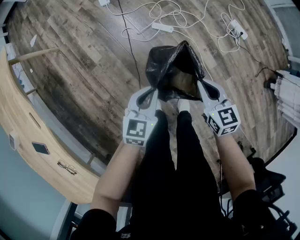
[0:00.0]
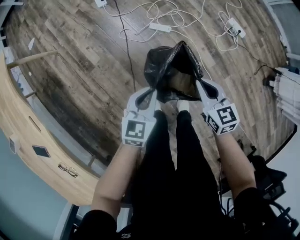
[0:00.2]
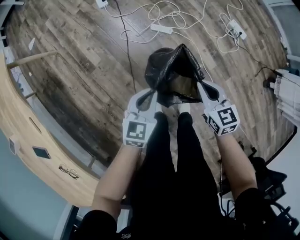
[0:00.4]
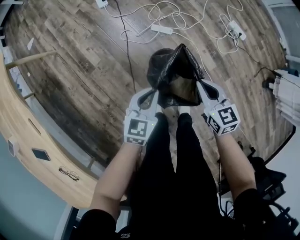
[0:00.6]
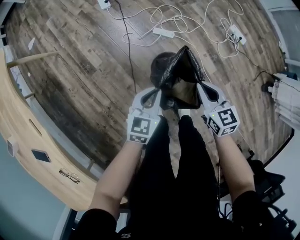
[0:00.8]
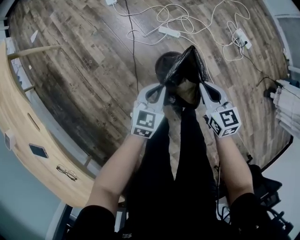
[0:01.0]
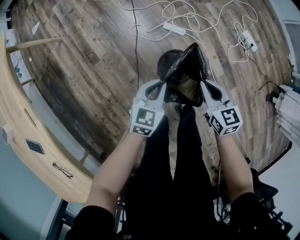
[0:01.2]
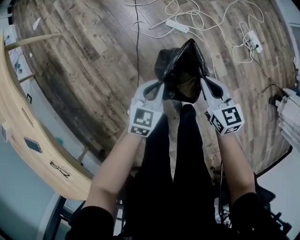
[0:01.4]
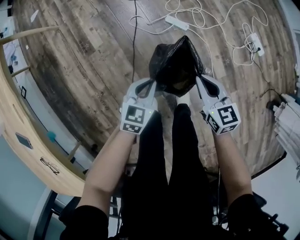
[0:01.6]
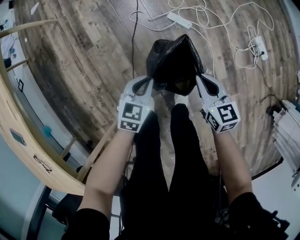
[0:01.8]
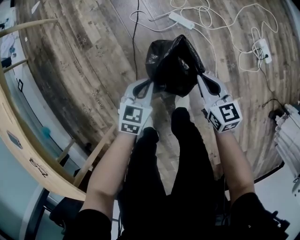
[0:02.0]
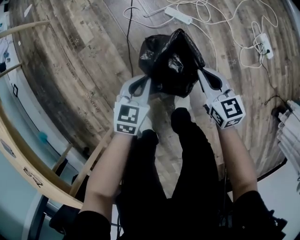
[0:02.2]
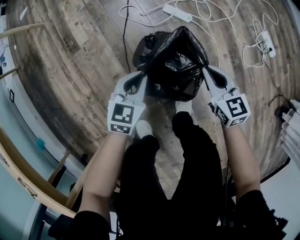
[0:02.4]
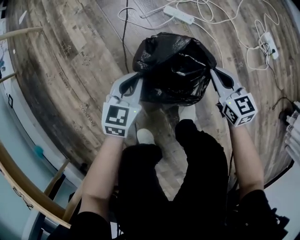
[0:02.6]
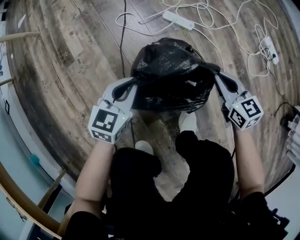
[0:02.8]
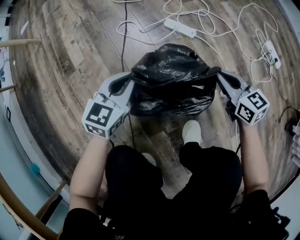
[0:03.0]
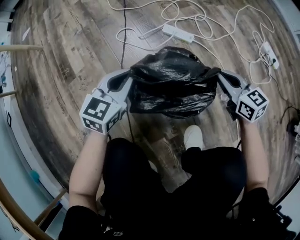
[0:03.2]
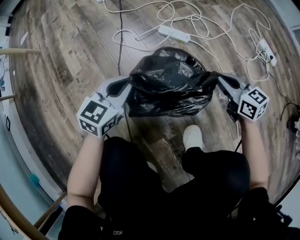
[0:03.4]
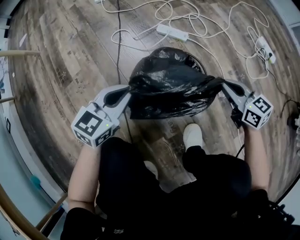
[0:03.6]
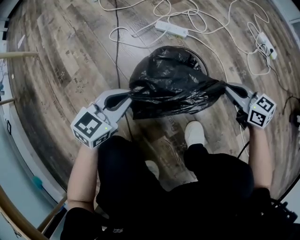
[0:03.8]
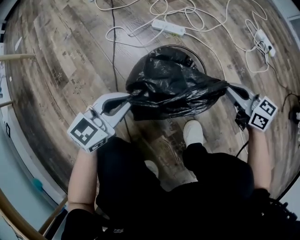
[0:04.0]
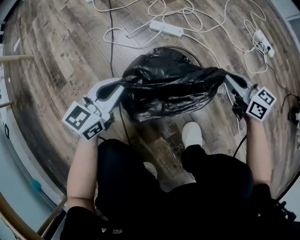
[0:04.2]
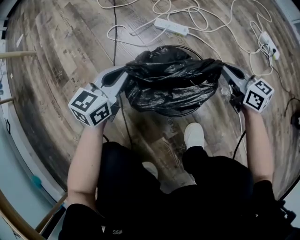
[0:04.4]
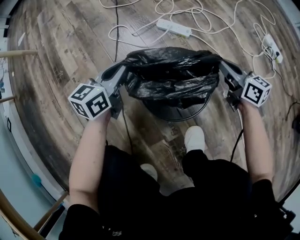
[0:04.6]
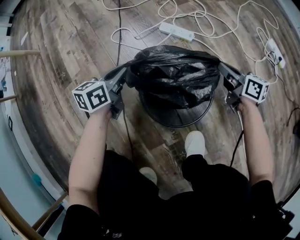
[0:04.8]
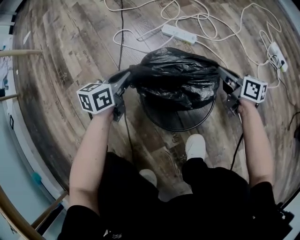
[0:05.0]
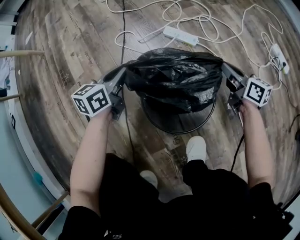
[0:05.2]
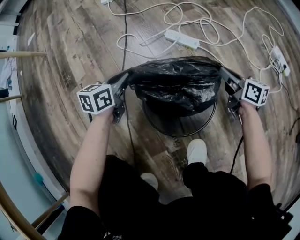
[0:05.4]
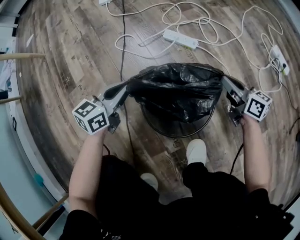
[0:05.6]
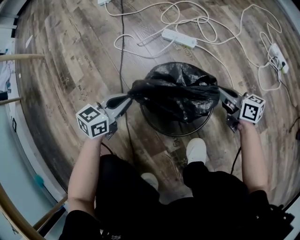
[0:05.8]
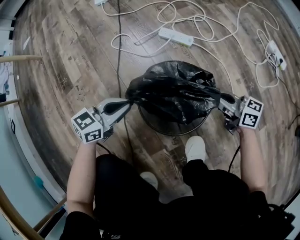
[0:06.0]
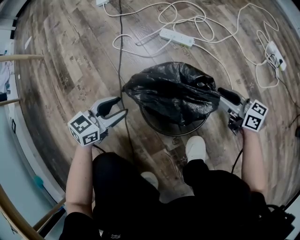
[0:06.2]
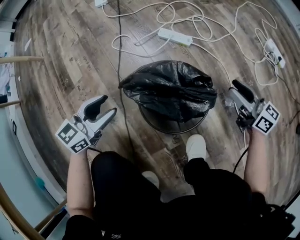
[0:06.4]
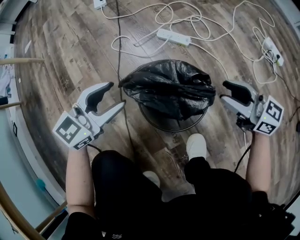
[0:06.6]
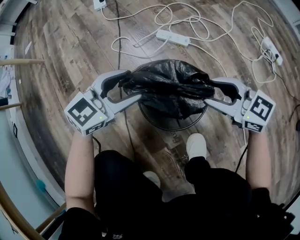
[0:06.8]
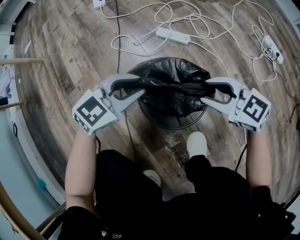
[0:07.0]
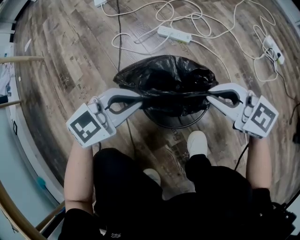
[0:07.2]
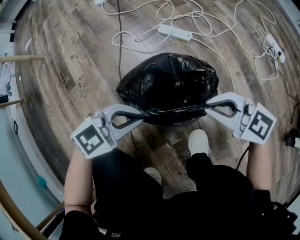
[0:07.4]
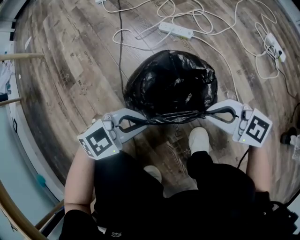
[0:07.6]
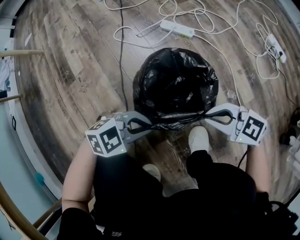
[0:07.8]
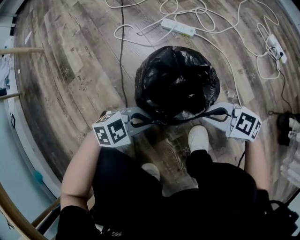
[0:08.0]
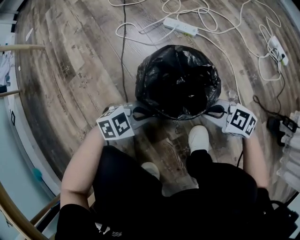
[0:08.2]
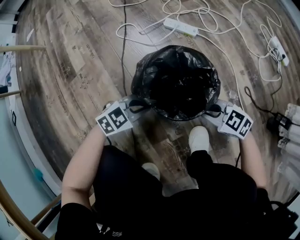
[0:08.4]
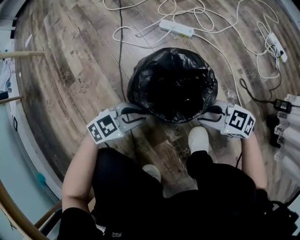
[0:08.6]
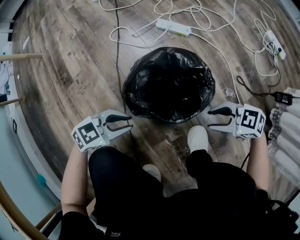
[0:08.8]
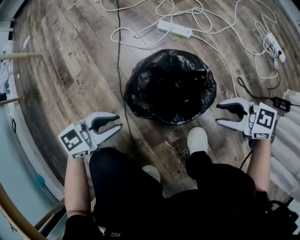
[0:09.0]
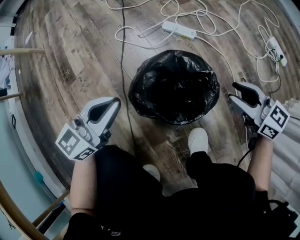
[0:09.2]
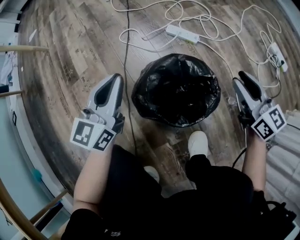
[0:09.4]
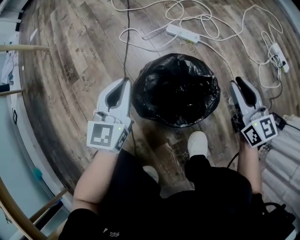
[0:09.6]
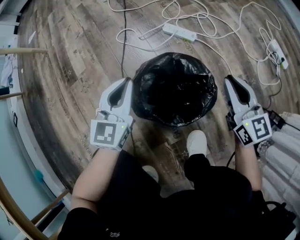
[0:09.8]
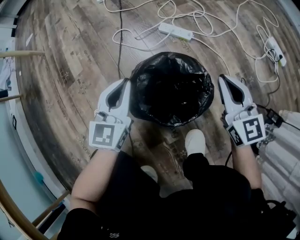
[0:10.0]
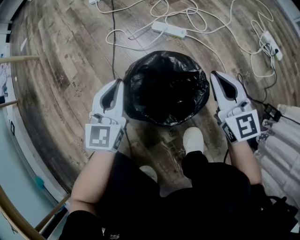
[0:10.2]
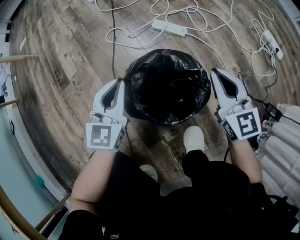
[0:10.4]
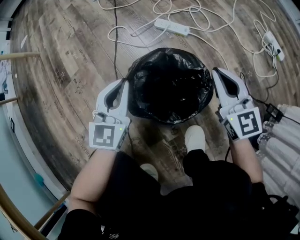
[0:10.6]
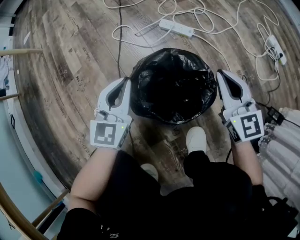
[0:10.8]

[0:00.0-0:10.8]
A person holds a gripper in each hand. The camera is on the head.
0.0 to 1.6 s: The right gripper travels downward and forward by roughly 15 cm; the left gripper heads downward, covering roughly 15 cm.
1.6 to 3.0 s: Both grippers travel together downward, some 25 cm.
3.0 to 4.6 s: Both grippers travel together downward, roughly 5 cm. The right gripper goes backward and returns, about 5 cm each way; the left gripper rotates approximately 20 degrees.
4.6 to 6.2 s: The grippers both shift backward by roughly 10 cm. The right gripper opens its fingers. The left gripper changes its angle by roughly 20 degrees, and opens up.
6.2 to 7.8 s: The right gripper ends up some 15 cm from where it was, turns by approximately 40 degrees, and closes. Meanwhile the left gripper travels upward and back again, about 10 cm each way, swivels approximately 50 degrees, and closes.
7.8 to 9.2 s: The left gripper changes place by approximately 20 cm, rotates roughly 60 degrees, and opens and closes again. The right gripper ends up roughly 15 cm from where it was, changes its angle by roughly 30 degrees, and opens its fingers.
9.2 to 10.8 s: The right gripper moves approximately 5 cm, changes its angle by roughly 30 degrees, and closes. Meanwhile the left gripper is displaced downward by approximately 5 cm, and turns by about 30 degrees.

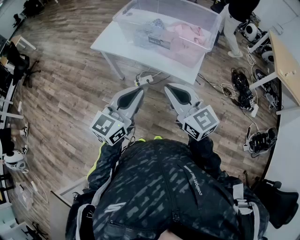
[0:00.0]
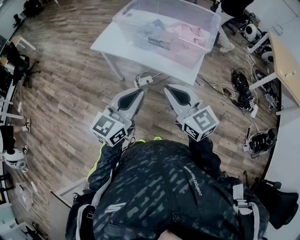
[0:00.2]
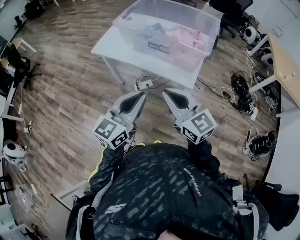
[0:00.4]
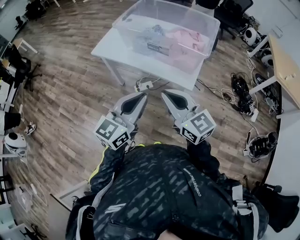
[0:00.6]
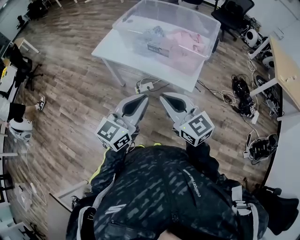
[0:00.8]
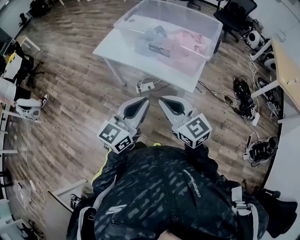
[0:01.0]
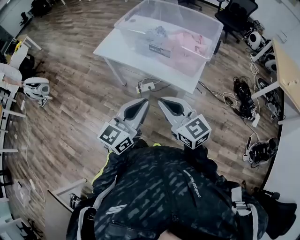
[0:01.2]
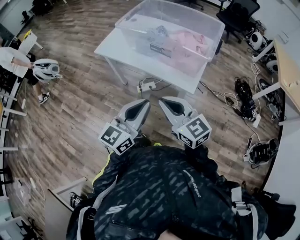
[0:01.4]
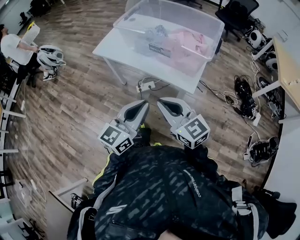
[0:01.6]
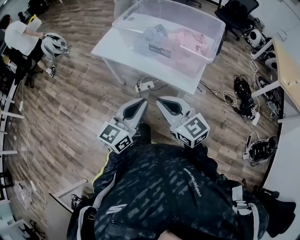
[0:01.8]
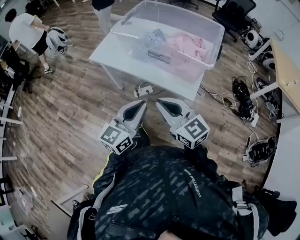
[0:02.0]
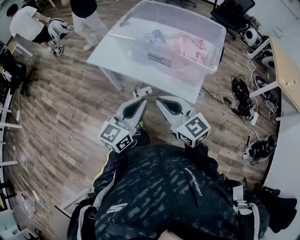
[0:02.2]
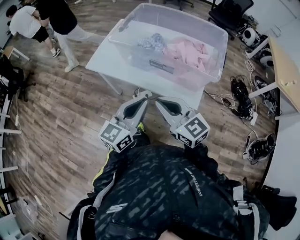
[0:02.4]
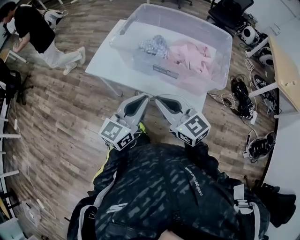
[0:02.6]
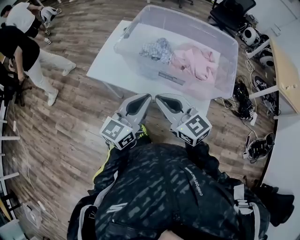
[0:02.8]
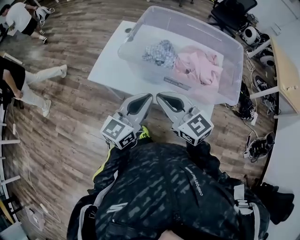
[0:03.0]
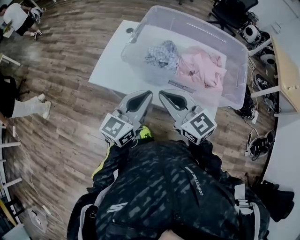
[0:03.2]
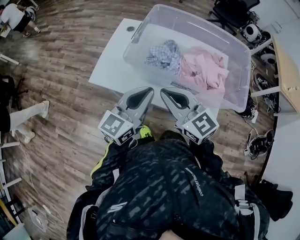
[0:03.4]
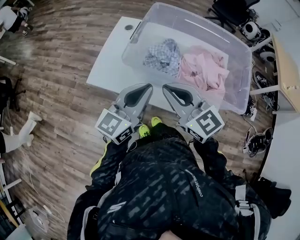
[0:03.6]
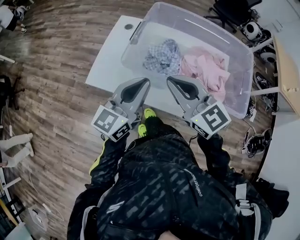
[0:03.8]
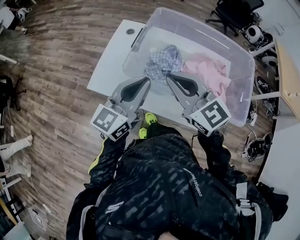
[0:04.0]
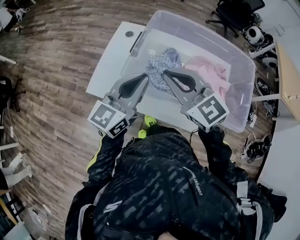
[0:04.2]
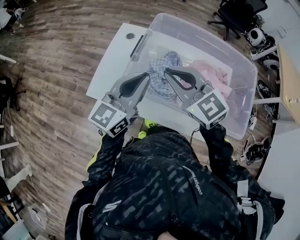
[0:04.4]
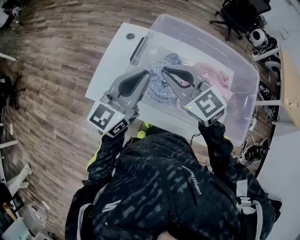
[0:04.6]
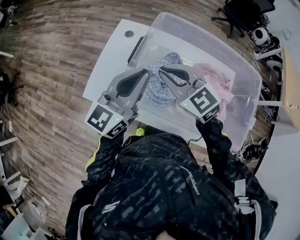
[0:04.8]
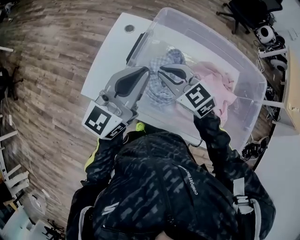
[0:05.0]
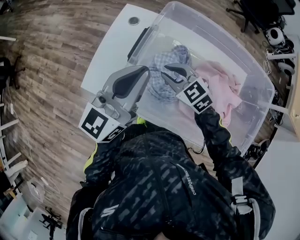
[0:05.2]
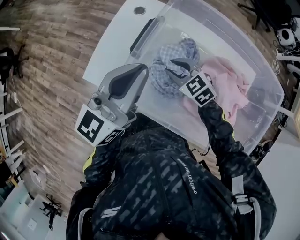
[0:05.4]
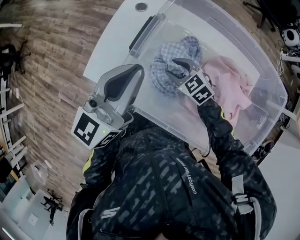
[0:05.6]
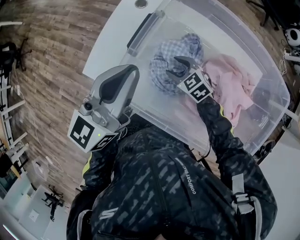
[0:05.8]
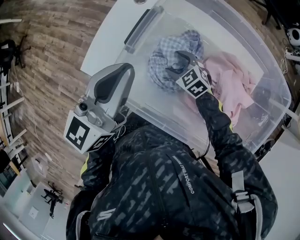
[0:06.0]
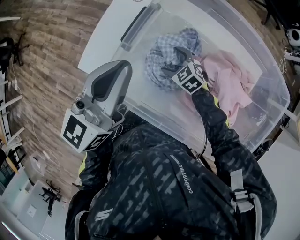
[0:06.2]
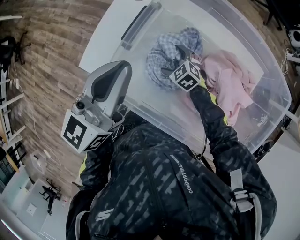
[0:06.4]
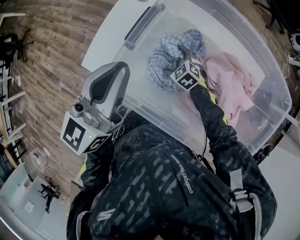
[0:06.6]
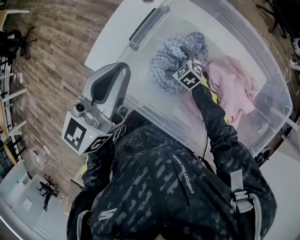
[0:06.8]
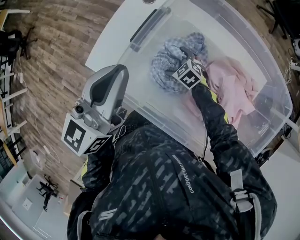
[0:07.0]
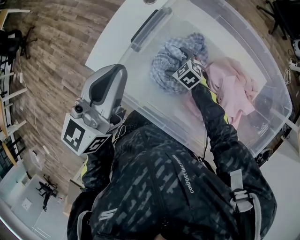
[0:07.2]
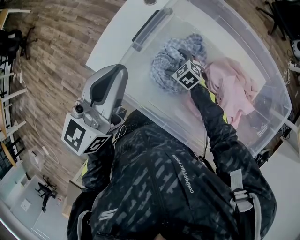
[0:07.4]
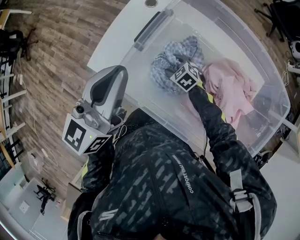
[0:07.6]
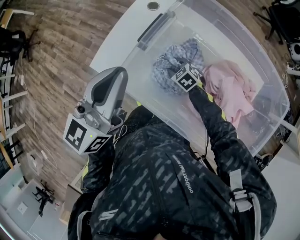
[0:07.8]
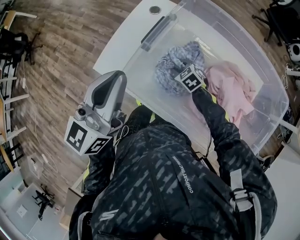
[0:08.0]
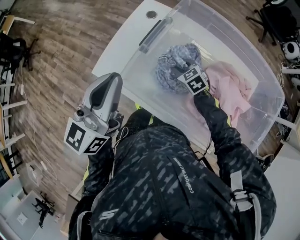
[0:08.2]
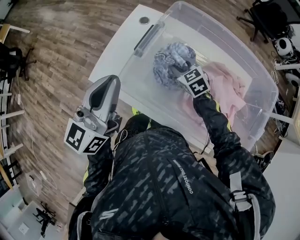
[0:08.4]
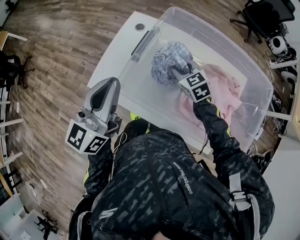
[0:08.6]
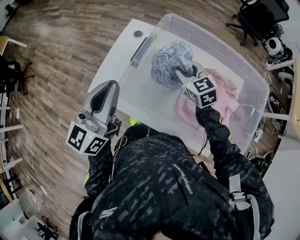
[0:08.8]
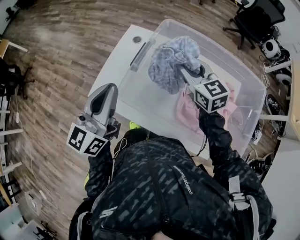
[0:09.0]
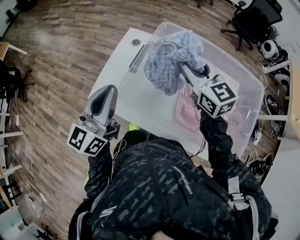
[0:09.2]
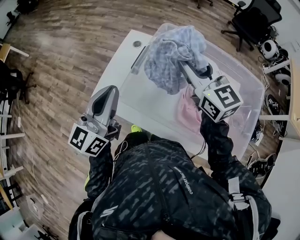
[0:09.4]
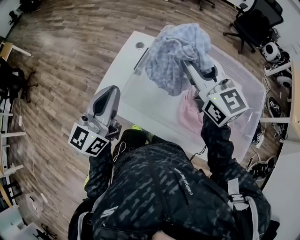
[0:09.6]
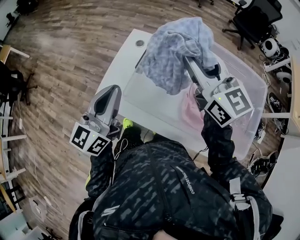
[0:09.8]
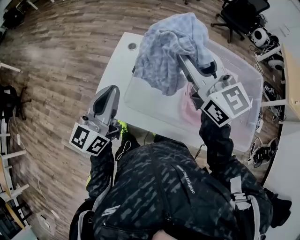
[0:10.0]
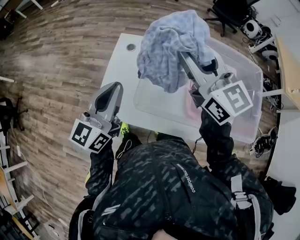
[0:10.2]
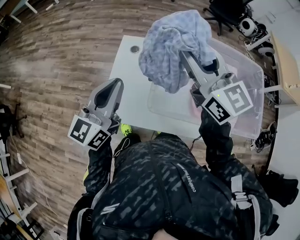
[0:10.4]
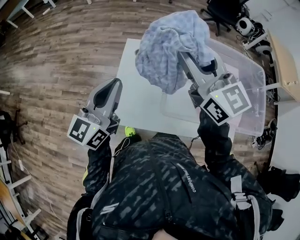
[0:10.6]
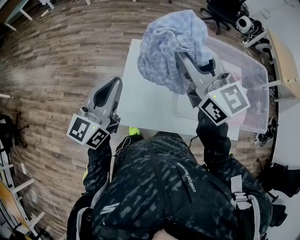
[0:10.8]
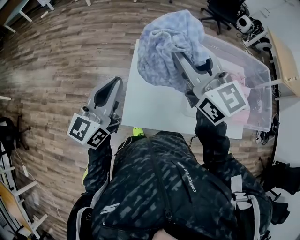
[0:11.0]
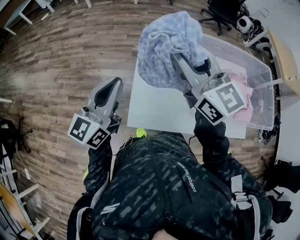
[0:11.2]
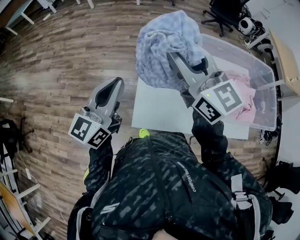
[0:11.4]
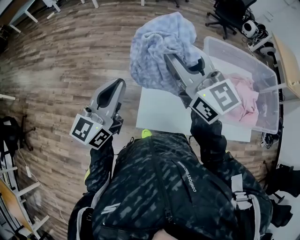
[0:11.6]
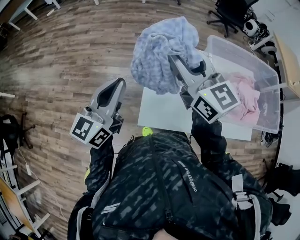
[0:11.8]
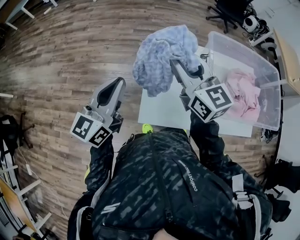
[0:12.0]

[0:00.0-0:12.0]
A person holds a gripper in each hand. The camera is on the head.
0.0 to 1.6 s: There are only small adjustments of the grippers.
1.6 to 3.0 s: Both grippers move forward, some 30 cm.
3.0 to 4.4 s: The two grippers go roughly 20 cm forward.
4.4 to 6.0 s: The right gripper travels downward by about 35 cm, angles its fingers downward, by approximately 30 degrees, and opens its fingers, while the left gripper heads forward, covering some 10 cm.
6.0 to 7.6 s: The right gripper heads downward, covering some 5 cm, and opens, then closes again.
7.6 to 9.0 s: The left gripper shifts by approximately 5 cm. The right gripper shifts about 35 cm upward, and tips its fingers upward by roughly 40 degrees.
9.0 to 10.4 s: The right gripper goes approximately 20 cm upward and to the left, and rotates approximately 20 degrees. The left gripper travels to the left and forward by roughly 15 cm.
10.4 to 12.0 s: The grippers both shift to the left by roughly 20 cm.

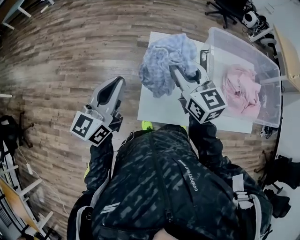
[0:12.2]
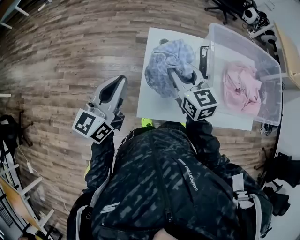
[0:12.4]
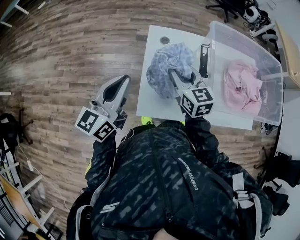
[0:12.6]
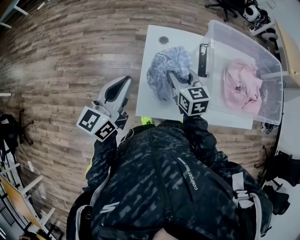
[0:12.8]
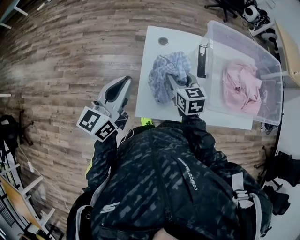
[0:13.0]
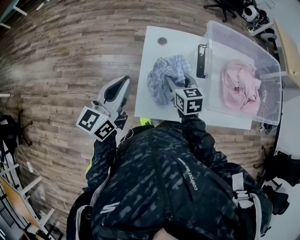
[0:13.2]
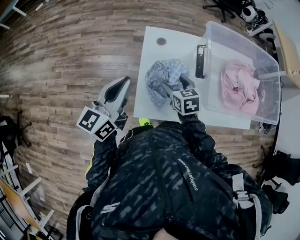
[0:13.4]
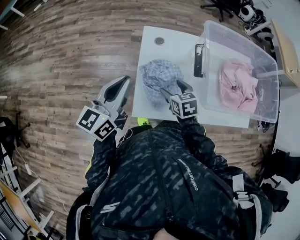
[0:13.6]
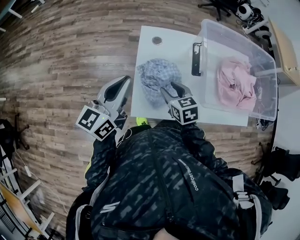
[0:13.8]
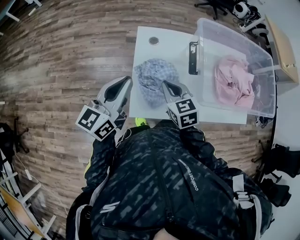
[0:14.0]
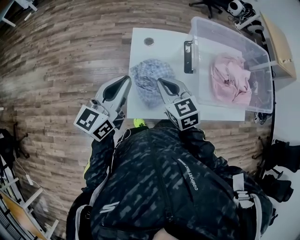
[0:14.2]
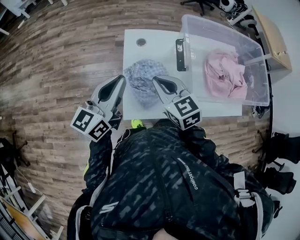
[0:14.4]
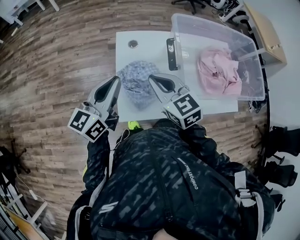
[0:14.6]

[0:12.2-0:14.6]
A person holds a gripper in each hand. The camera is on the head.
12.2 to 13.4 s: The left gripper changes place by roughly 5 cm; the right gripper moves downward, about 20 cm, angles its fingers downward, by approximately 30 degrees, and opens its fingers.
13.4 to 14.6 s: The left gripper shifts by approximately 5 cm. The right gripper is displaced upward by approximately 15 cm, swivels roughly 20 degrees, and closes.
